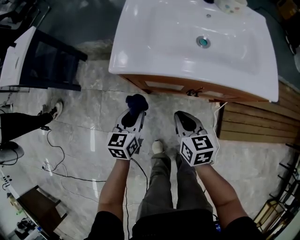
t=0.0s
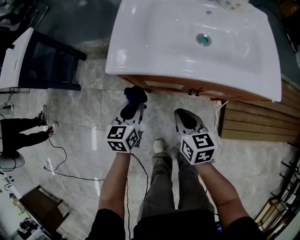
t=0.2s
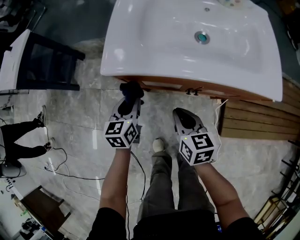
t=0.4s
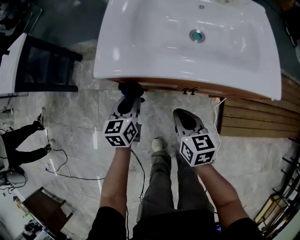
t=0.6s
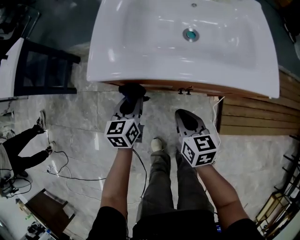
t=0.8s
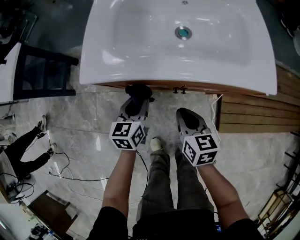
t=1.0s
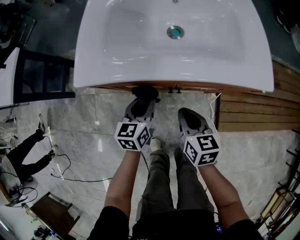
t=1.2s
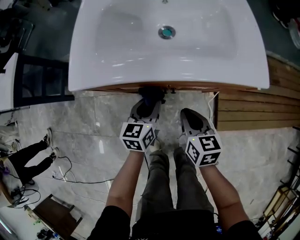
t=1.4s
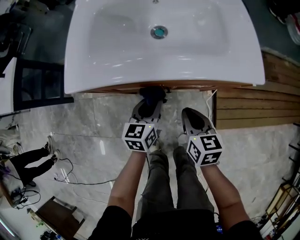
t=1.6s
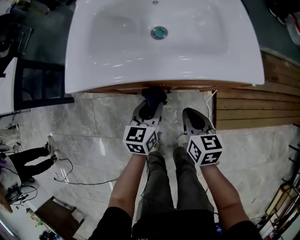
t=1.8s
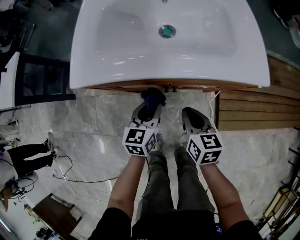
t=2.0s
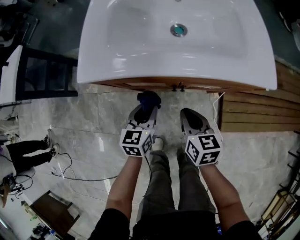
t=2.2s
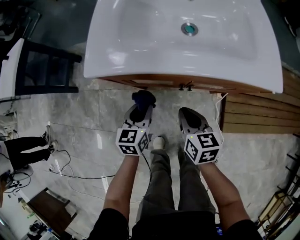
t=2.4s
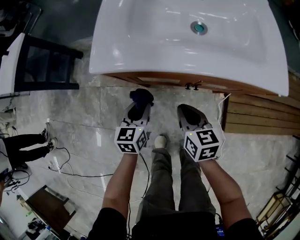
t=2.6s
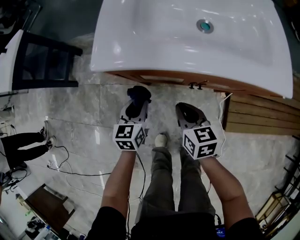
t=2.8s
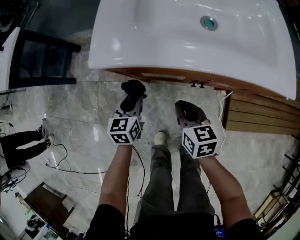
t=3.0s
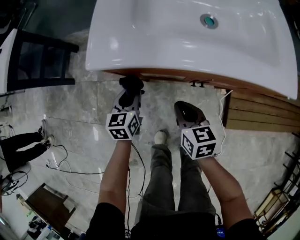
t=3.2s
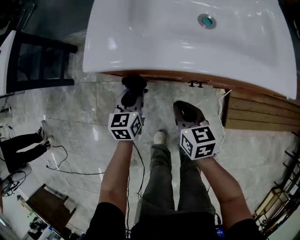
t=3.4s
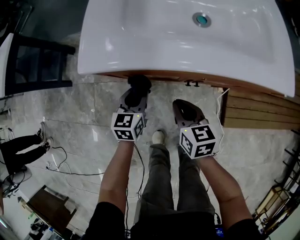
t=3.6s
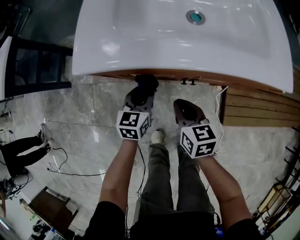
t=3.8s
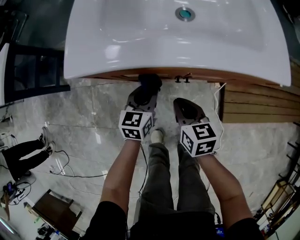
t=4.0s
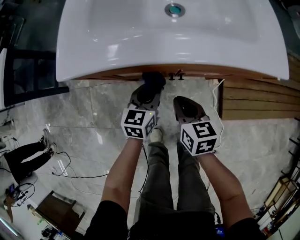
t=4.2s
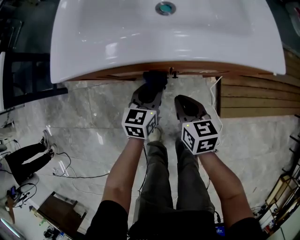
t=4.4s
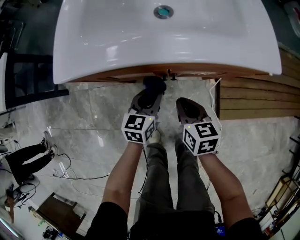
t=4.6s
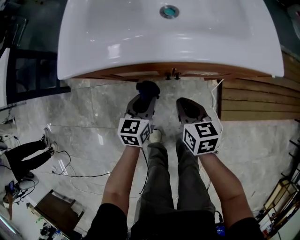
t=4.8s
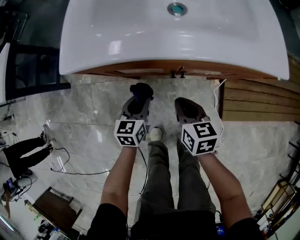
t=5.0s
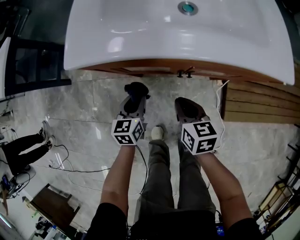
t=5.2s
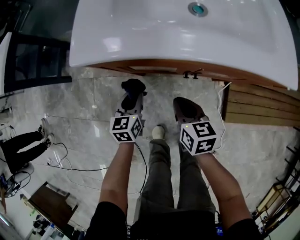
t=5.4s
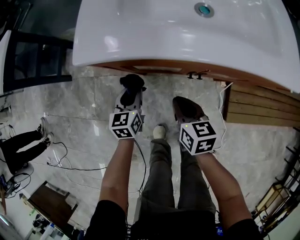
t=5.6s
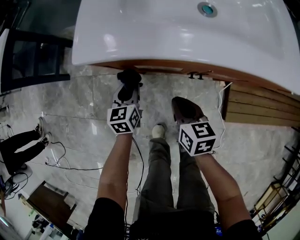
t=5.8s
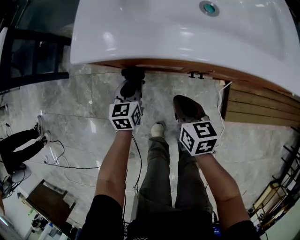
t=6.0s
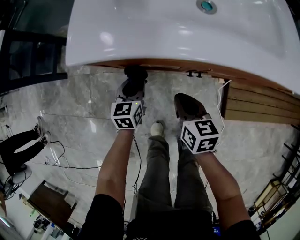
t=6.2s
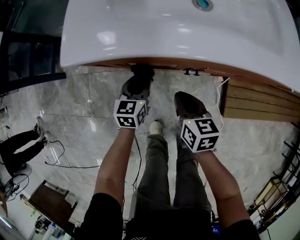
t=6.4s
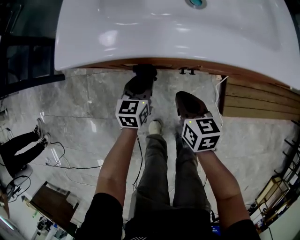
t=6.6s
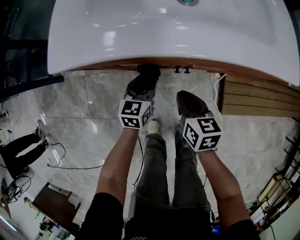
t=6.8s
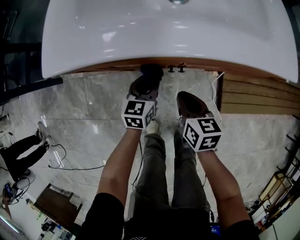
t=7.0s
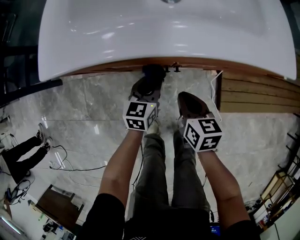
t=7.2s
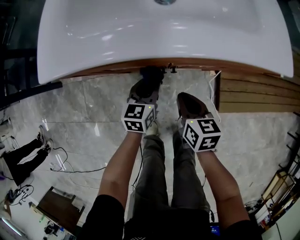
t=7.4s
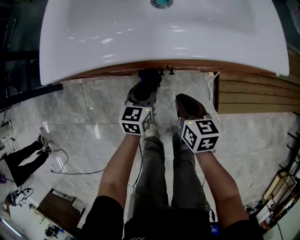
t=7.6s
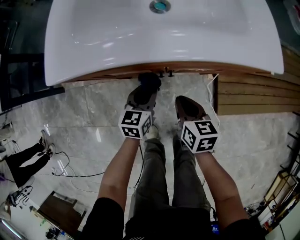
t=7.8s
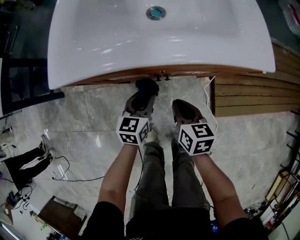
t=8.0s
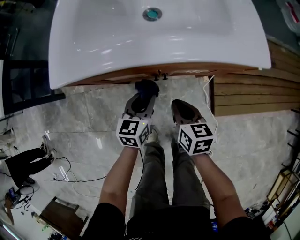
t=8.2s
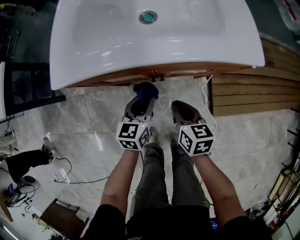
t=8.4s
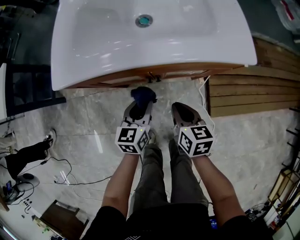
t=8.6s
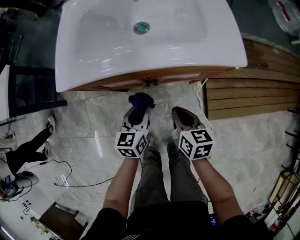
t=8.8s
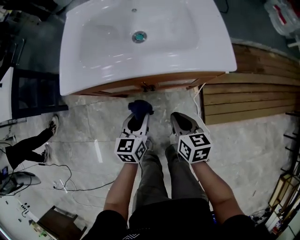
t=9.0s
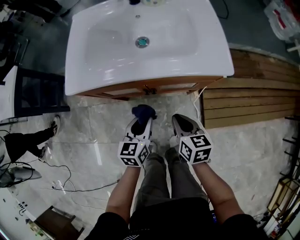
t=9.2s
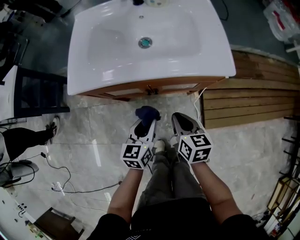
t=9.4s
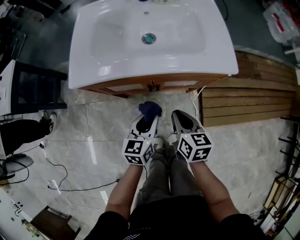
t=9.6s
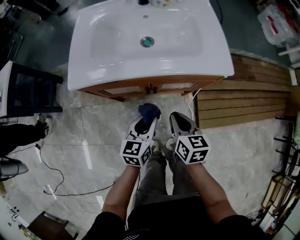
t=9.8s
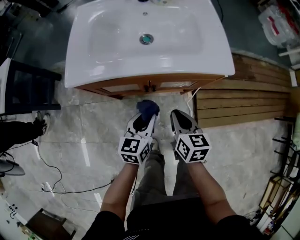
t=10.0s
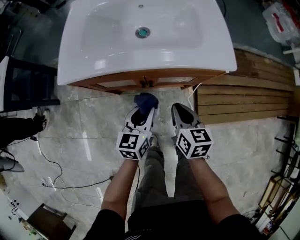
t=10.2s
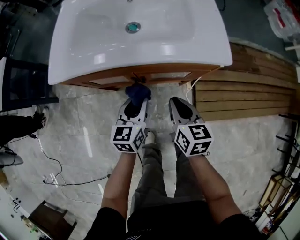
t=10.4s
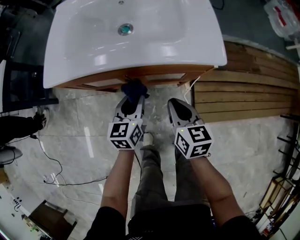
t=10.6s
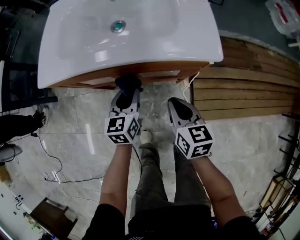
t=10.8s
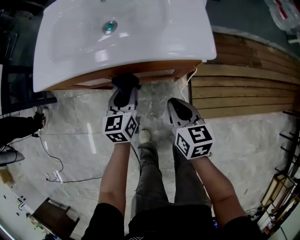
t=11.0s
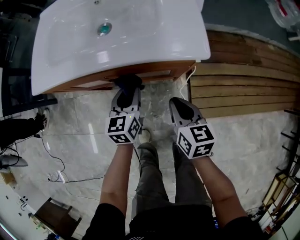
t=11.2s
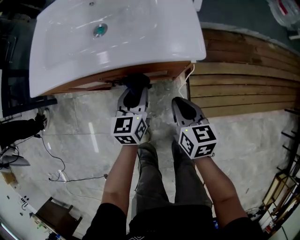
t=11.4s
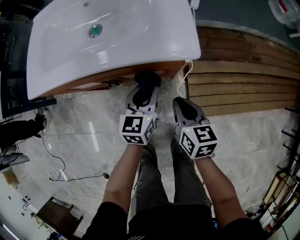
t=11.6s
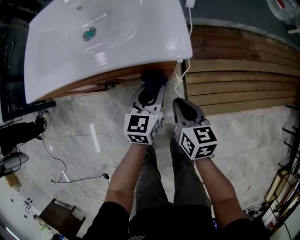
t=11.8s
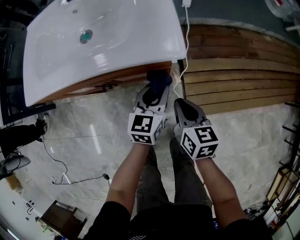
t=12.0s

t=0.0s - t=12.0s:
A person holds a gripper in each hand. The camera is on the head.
t=0.0s - t=1.6s: Both grippers move to the right, some 20 cm.
t=1.6s - t=3.0s: Both grippers travel together to the left, about 20 cm.
t=3.0s - t=4.4s: The right gripper travels to the right by approximately 10 cm; the left gripper shifts approximately 20 cm to the right.
t=4.4s - t=6.0s: The left gripper goes about 15 cm to the left. The right gripper is displaced to the left by roughly 10 cm.
t=6.0s - t=7.6s: The right gripper is displaced to the right by roughly 10 cm; the left gripper travels to the right by about 15 cm.
t=7.6s - t=9.0s: The right gripper heads upward and to the right, covering approximately 10 cm, while the left gripper is displaced upward and backward by some 15 cm.
t=9.0s - t=10.4s: The right gripper ends up roughly 5 cm from where it was.
t=10.4s - t=12.0s: Both grippers move to the right, some 20 cm.

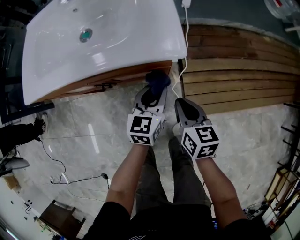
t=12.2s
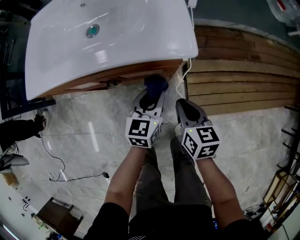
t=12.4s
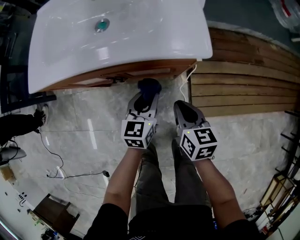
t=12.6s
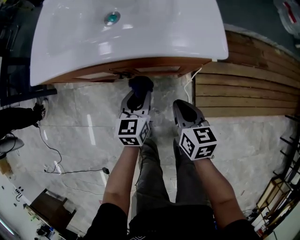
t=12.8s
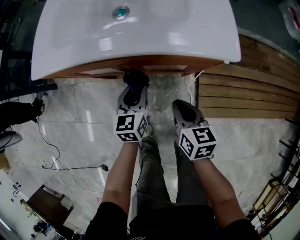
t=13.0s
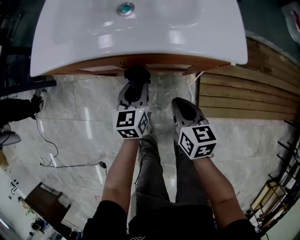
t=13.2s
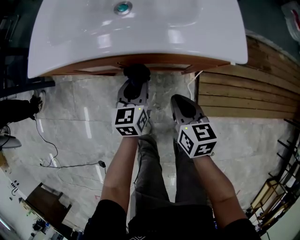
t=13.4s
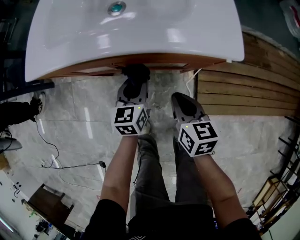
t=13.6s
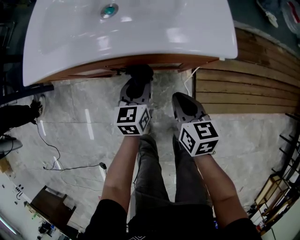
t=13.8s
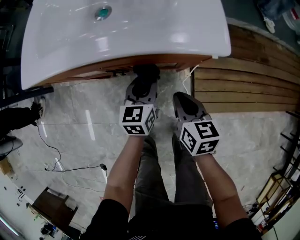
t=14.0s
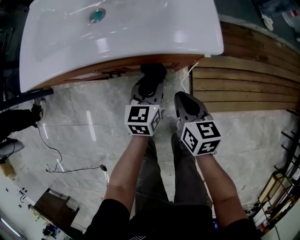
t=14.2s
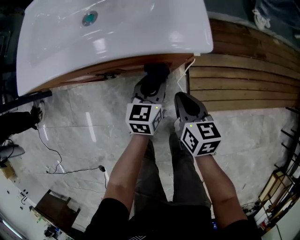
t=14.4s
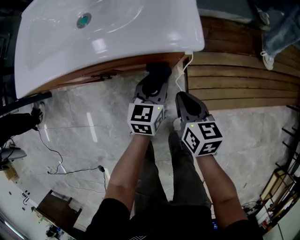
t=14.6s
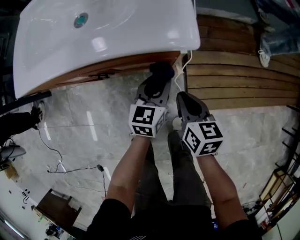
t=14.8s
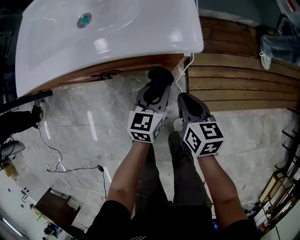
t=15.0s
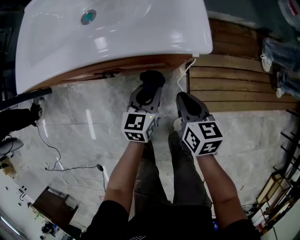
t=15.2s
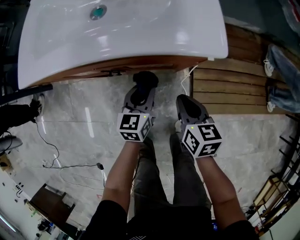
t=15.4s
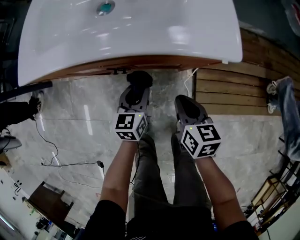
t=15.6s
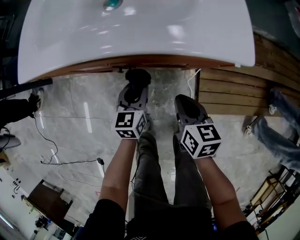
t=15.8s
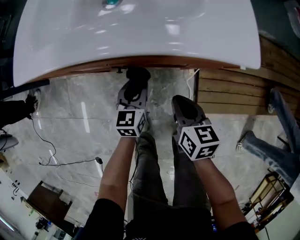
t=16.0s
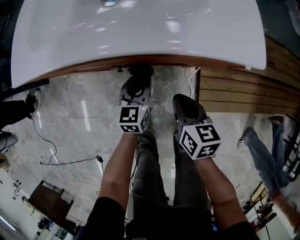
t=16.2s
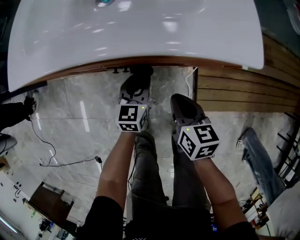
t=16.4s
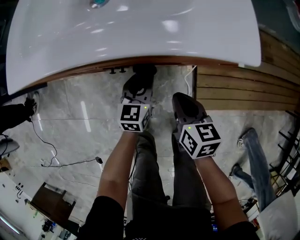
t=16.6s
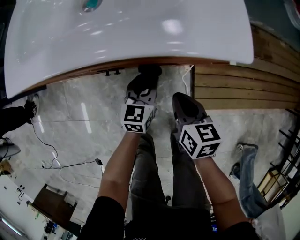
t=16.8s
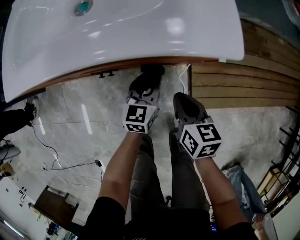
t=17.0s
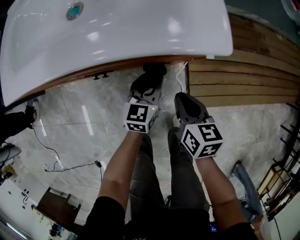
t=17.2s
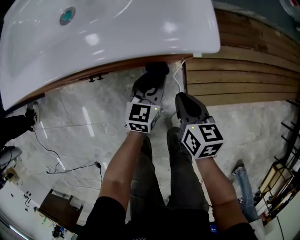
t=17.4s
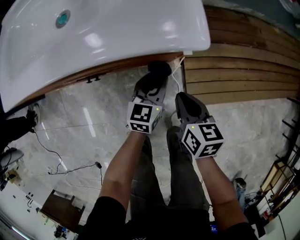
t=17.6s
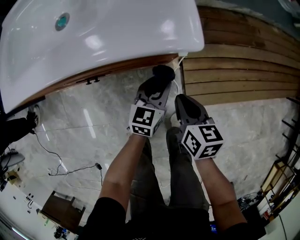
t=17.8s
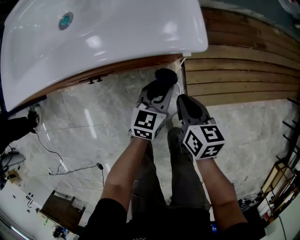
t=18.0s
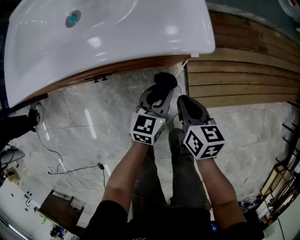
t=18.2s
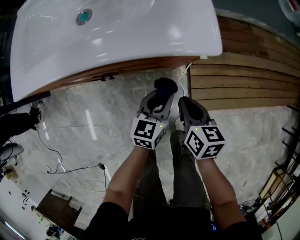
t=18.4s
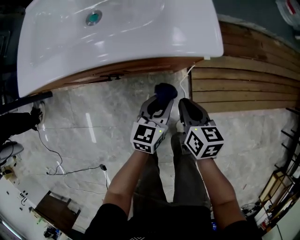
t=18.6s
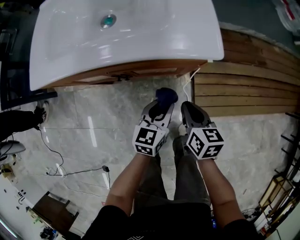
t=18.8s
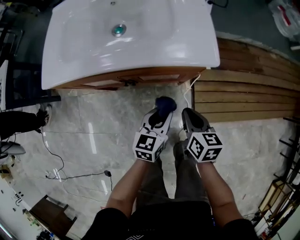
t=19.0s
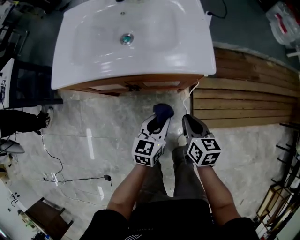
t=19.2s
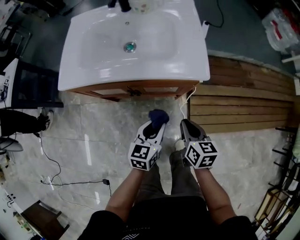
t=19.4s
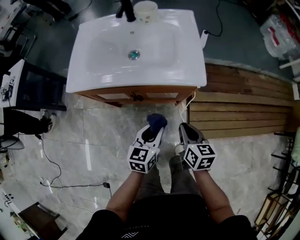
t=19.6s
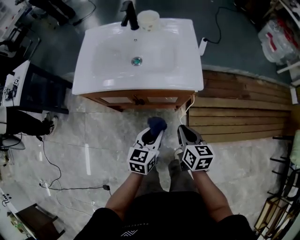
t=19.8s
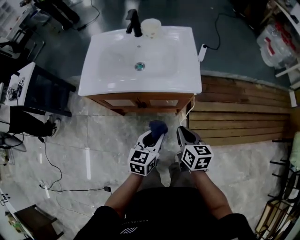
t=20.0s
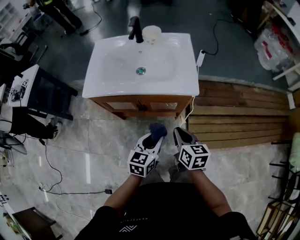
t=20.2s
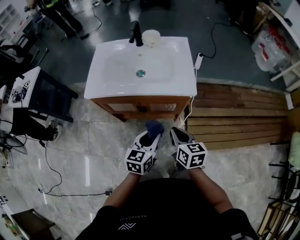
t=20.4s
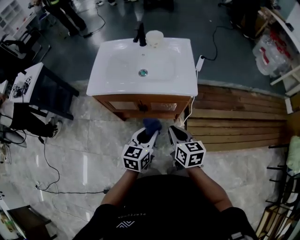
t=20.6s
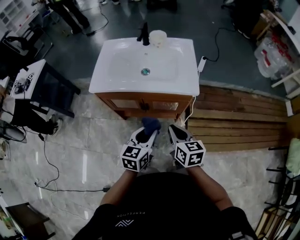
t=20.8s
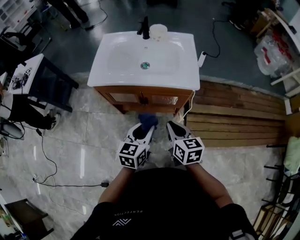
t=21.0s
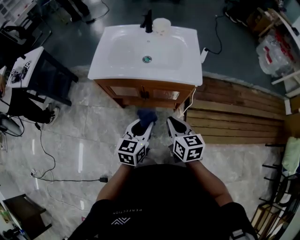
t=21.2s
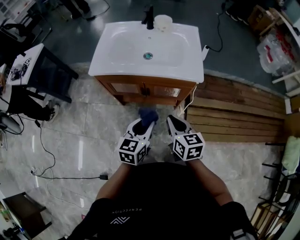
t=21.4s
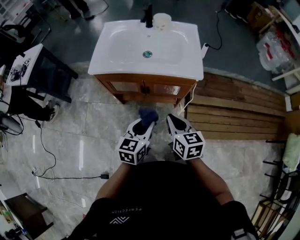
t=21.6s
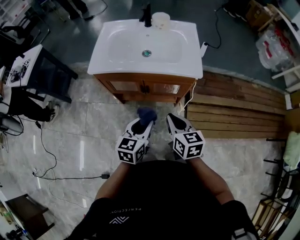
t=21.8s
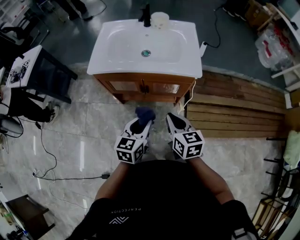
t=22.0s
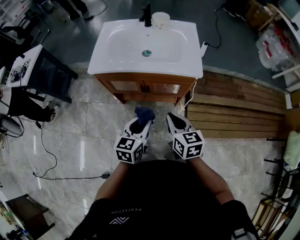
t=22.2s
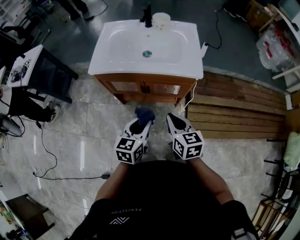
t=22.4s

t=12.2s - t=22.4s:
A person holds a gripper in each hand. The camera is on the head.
t=12.2s - t=13.6s: The left gripper heads to the left, covering roughly 20 cm, while the right gripper is displaced to the left by approximately 10 cm.
t=13.6s - t=15.2s: The grippers both shift to the right by about 10 cm.
t=15.2s - t=16.6s: The right gripper shifts some 10 cm to the left. The left gripper heads to the left and downward, covering roughly 10 cm.
t=16.6s - t=18.0s: The right gripper heads to the right, covering roughly 10 cm. The left gripper travels to the right by roughly 15 cm.
t=18.0s - t=19.4s: The left gripper is displaced upward, to the left and backward by roughly 20 cm. The right gripper goes approximately 15 cm upward and to the left.
t=19.4s - t=21.0s: The left gripper heads upward, to the left and backward, covering some 15 cm. Meanwhile the right gripper shifts some 15 cm upward and to the left.
t=21.0s - t=22.4s: The grippers move only a little.

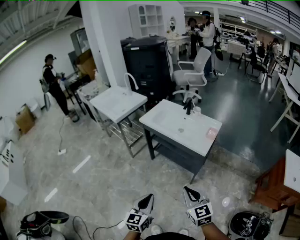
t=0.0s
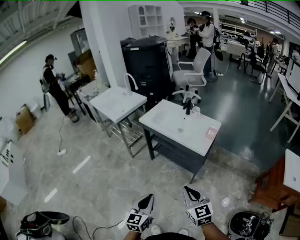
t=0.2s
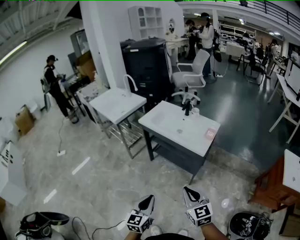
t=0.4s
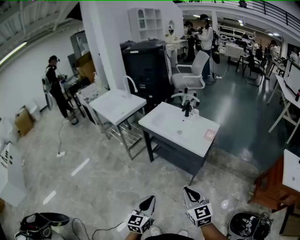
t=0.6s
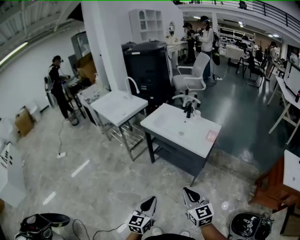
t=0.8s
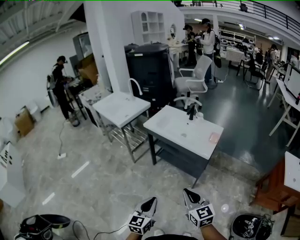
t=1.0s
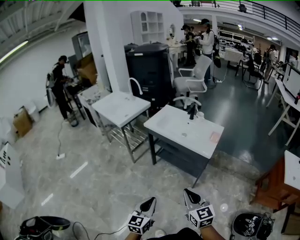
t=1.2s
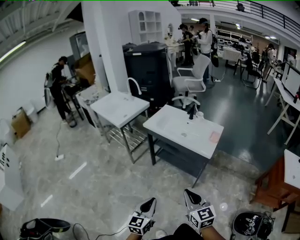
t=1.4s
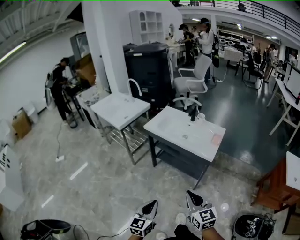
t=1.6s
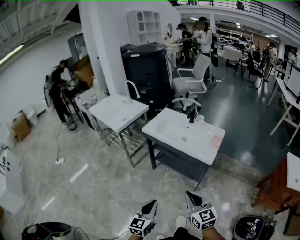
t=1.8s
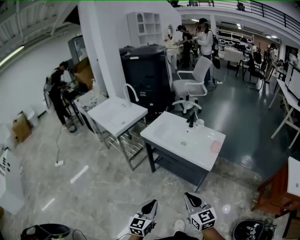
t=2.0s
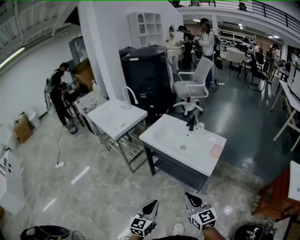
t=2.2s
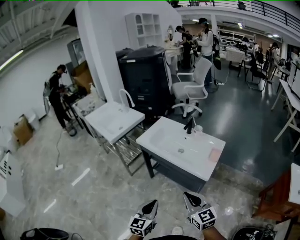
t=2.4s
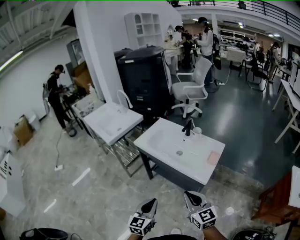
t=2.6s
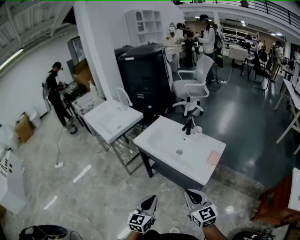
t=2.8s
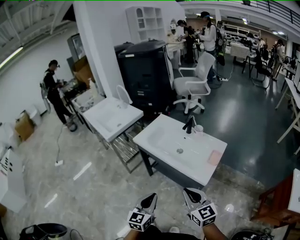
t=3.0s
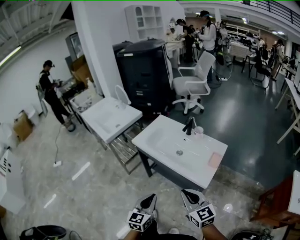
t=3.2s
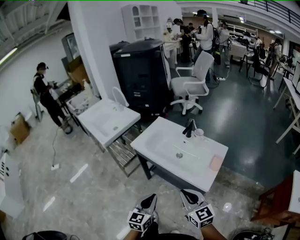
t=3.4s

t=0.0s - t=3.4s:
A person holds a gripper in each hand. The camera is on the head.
t=0.0s - t=1.6s: The right gripper heads to the left, covering roughly 5 cm; the left gripper changes place by some 5 cm.
t=1.6s - t=3.4s: Both grippers move forward, approximately 25 cm.
